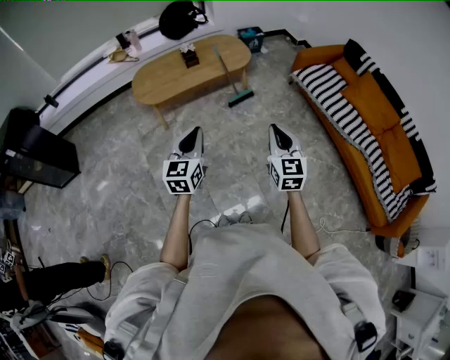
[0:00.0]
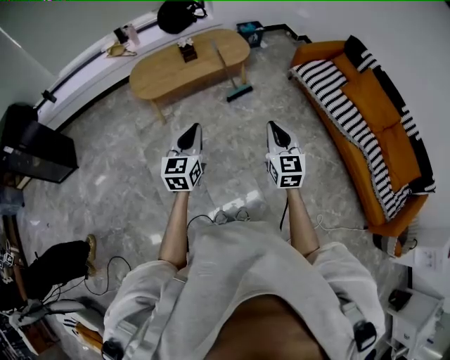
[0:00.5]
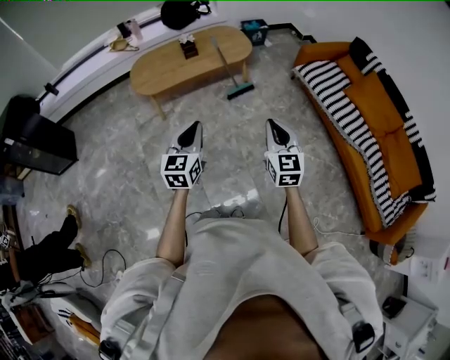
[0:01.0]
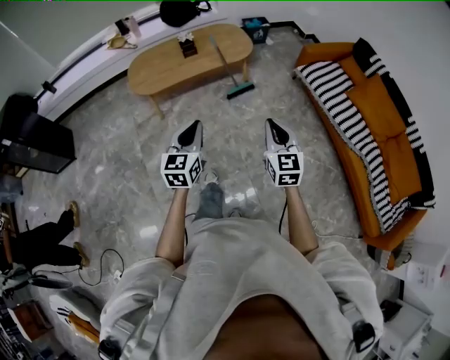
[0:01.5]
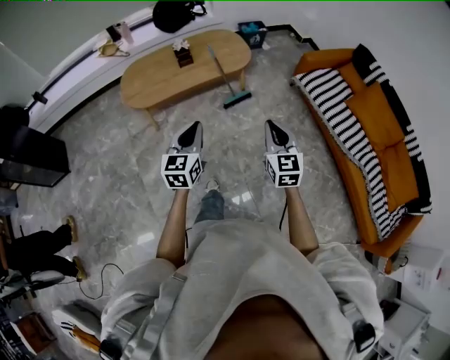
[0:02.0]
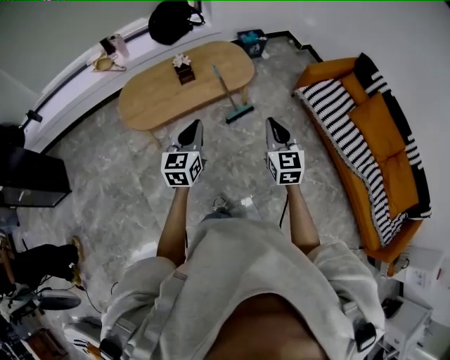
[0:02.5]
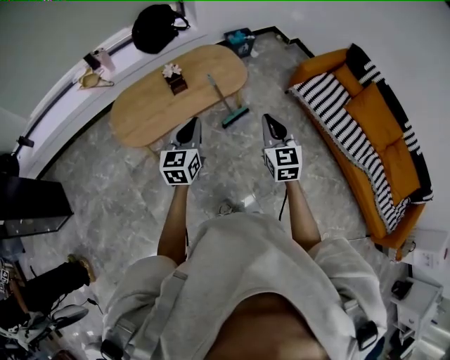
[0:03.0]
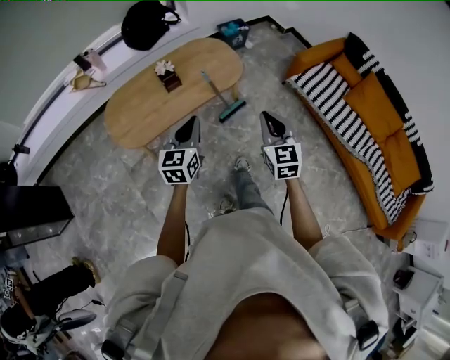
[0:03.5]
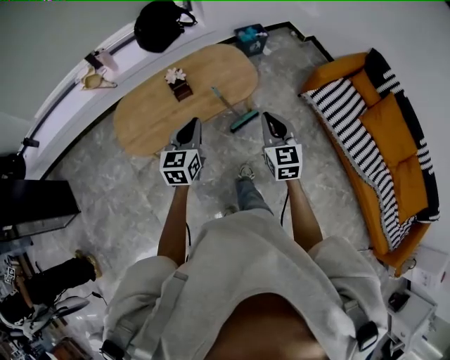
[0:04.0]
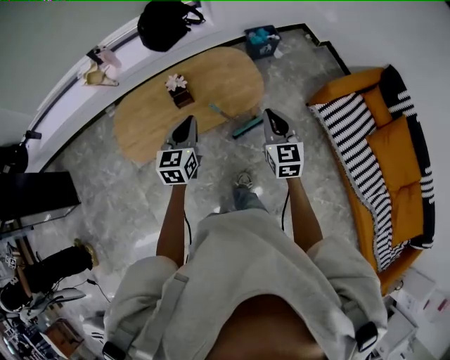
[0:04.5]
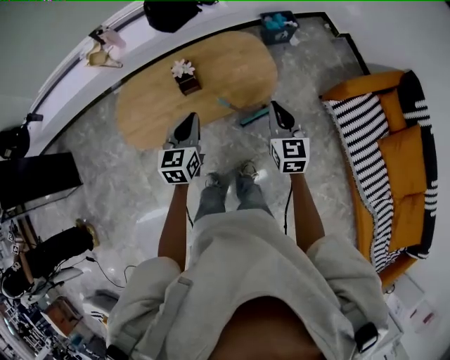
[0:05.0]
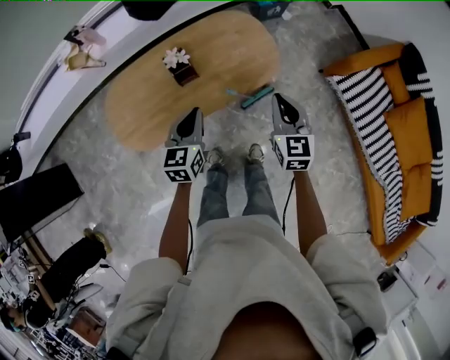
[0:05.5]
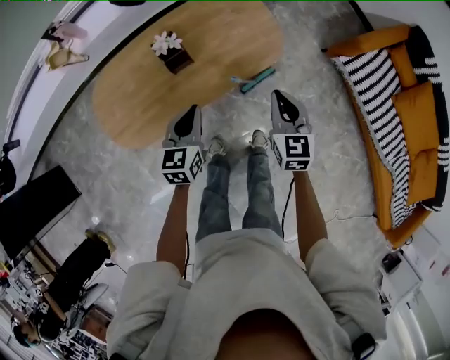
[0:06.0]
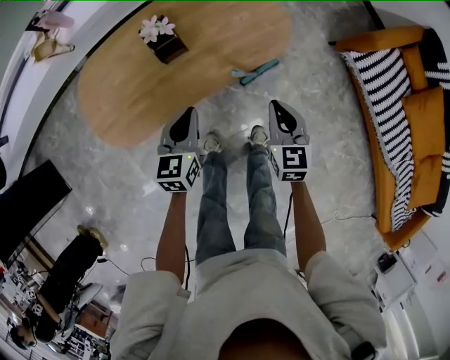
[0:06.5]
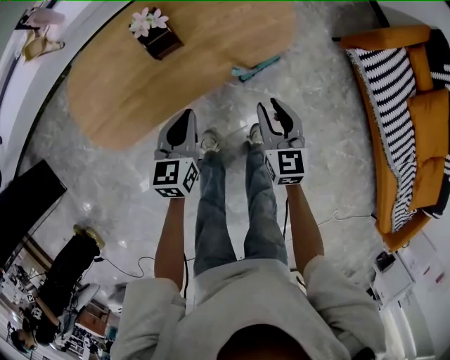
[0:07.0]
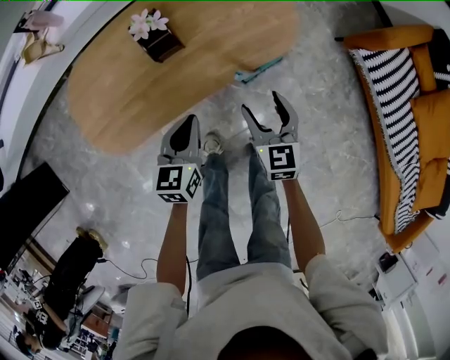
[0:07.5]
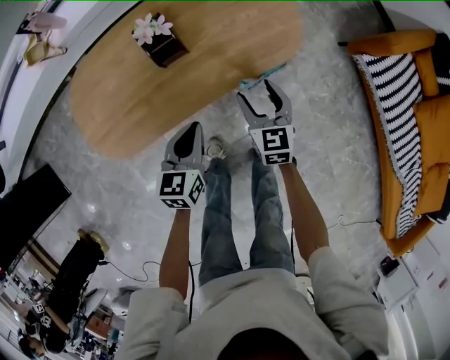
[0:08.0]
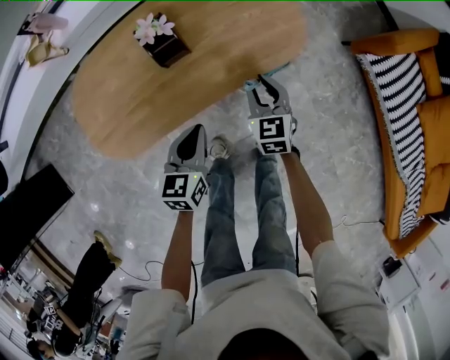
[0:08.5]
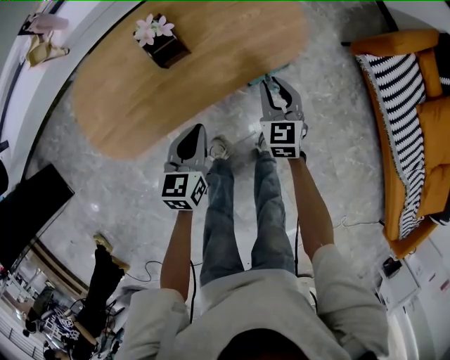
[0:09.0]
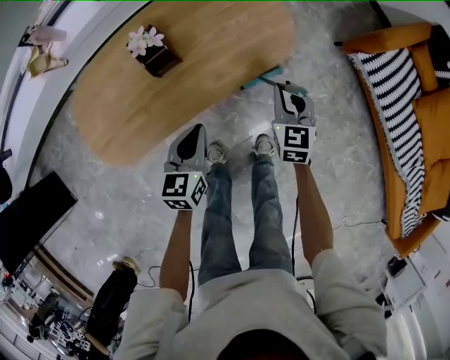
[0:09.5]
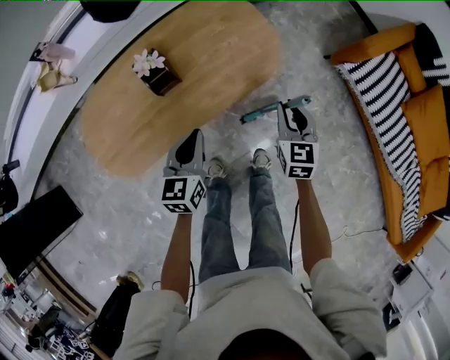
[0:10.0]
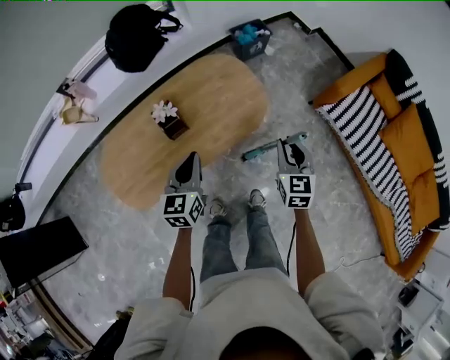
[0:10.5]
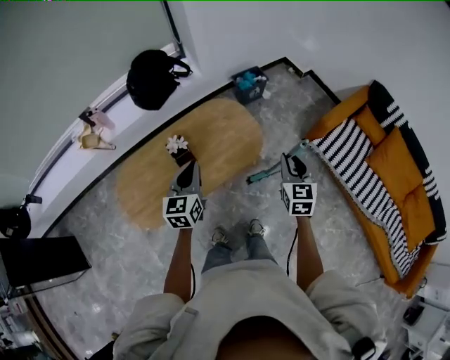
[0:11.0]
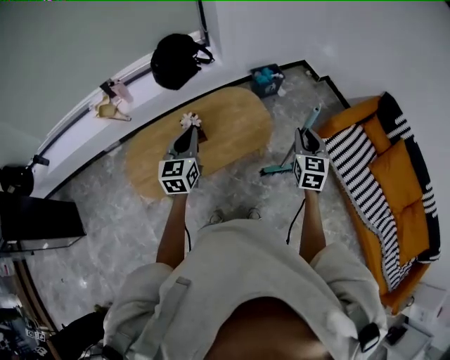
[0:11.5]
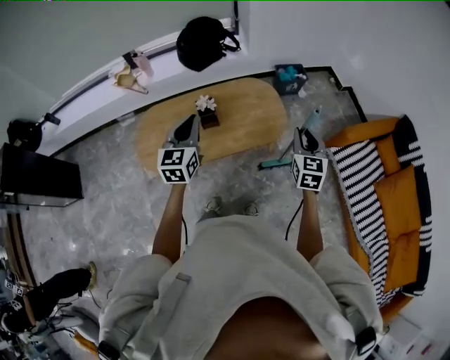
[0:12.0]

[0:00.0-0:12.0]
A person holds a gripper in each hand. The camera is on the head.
0.0 to 2.0 s: Both grippers travel together forward, about 15 cm.
2.0 to 4.0 s: The grippers both shift forward by approximately 35 cm.
4.0 to 6.0 s: The two grippers go approximately 25 cm downward and forward.
6.0 to 8.0 s: Both grippers move downward, roughly 15 cm. The right gripper opens its fingers.
8.0 to 10.0 s: The right gripper shifts roughly 15 cm to the right and upward, and closes. The left gripper is displaced upward by some 5 cm.
10.0 to 12.0 s: The grippers both shift upward by about 30 cm. The left gripper changes its angle by some 30 degrees.

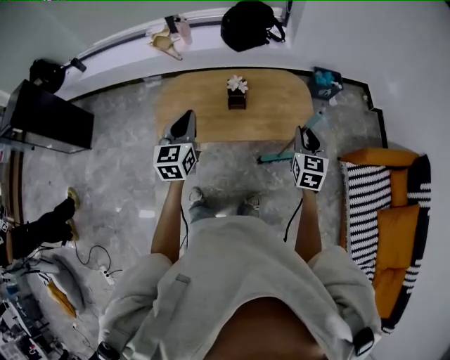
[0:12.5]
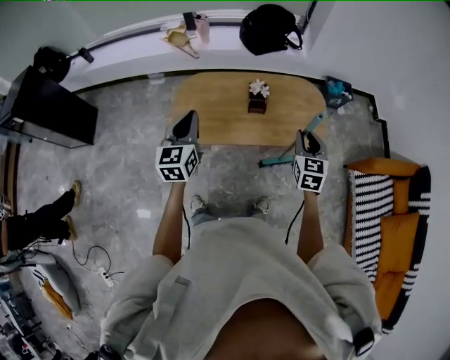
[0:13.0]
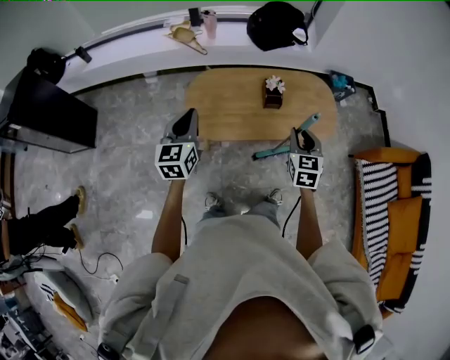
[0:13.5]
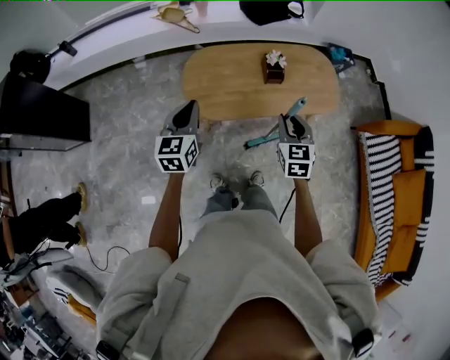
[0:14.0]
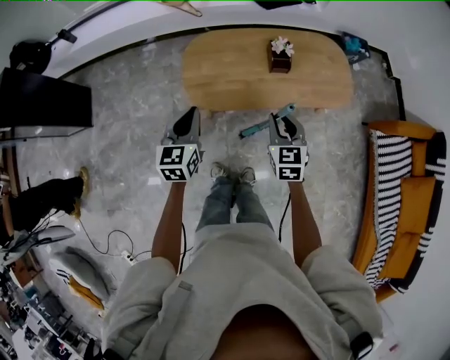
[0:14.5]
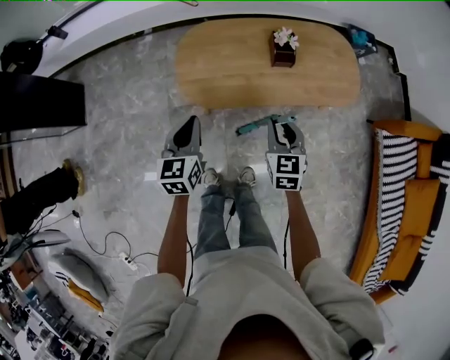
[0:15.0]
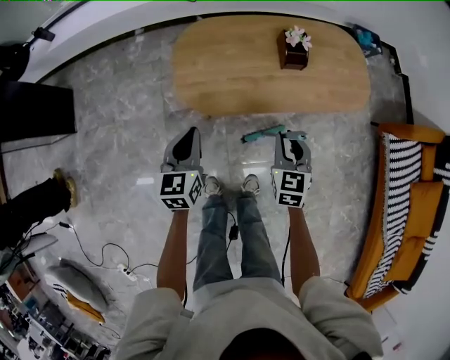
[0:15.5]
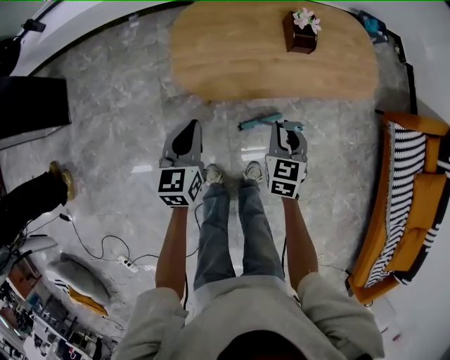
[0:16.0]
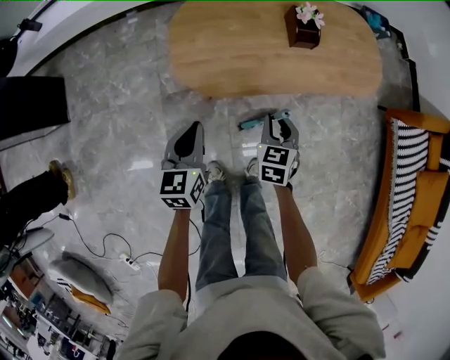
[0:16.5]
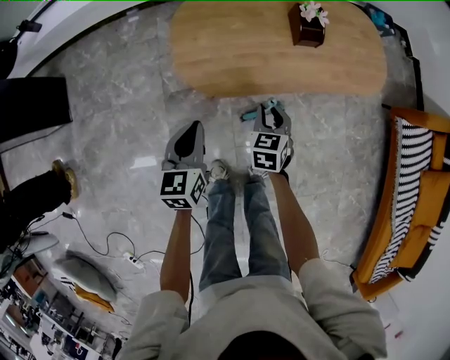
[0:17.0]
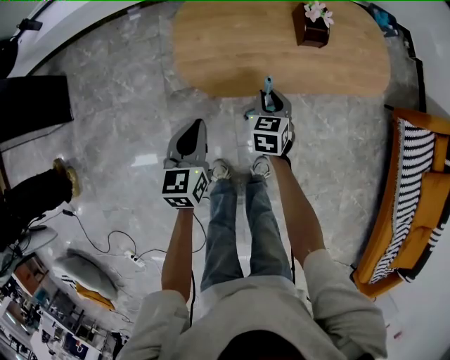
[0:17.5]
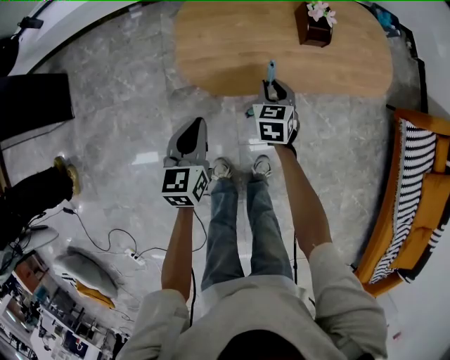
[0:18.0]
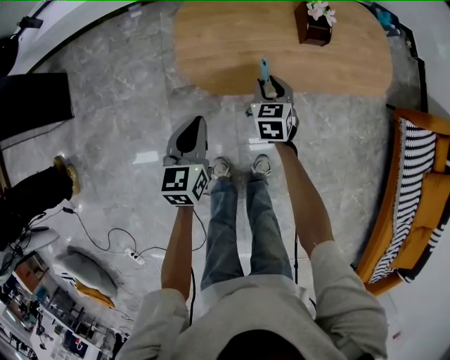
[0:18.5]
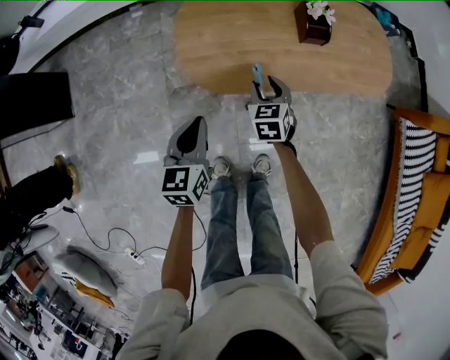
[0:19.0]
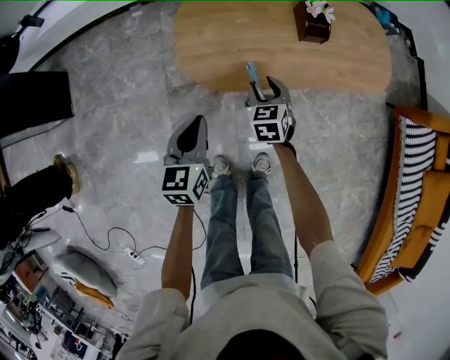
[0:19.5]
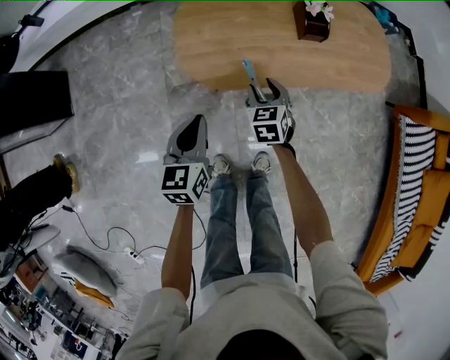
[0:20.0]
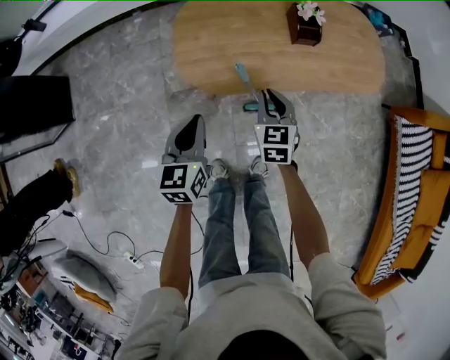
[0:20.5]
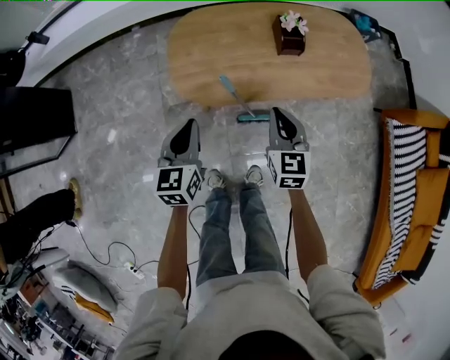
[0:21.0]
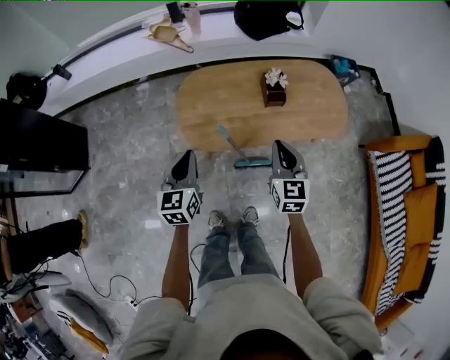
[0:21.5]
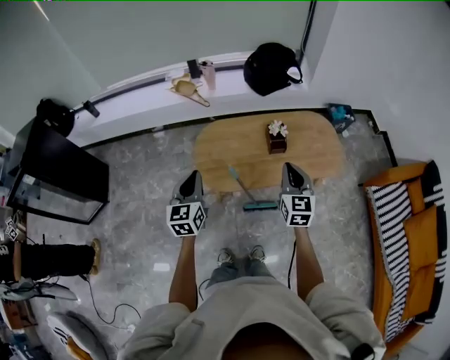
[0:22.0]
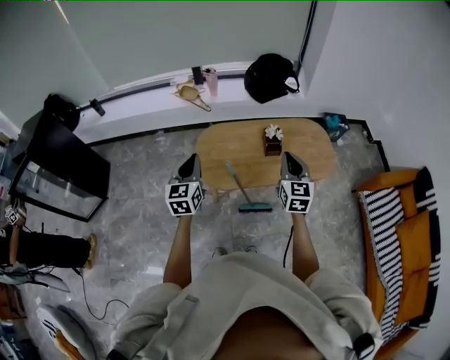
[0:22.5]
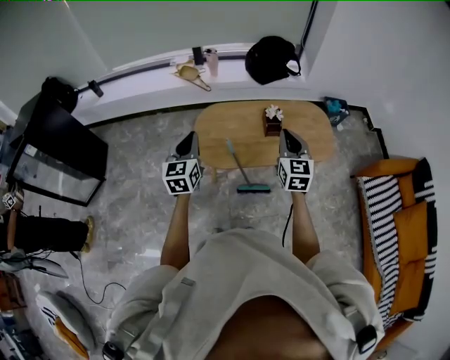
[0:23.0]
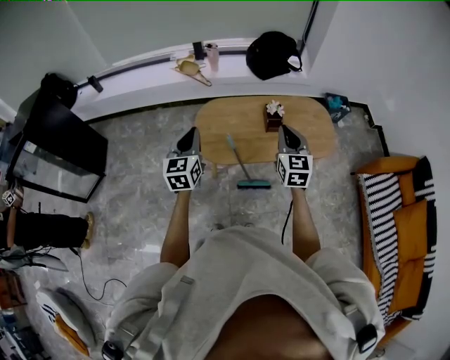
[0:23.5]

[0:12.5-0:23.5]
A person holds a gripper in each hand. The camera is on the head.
12.5 to 14.5 s: The right gripper shifts about 35 cm to the left, while the left gripper shifts about 25 cm to the left and downward.
14.5 to 16.0 s: The grippers both shift downward by roughly 20 cm.
16.0 to 18.0 s: The right gripper heads forward, downward and to the left, covering some 15 cm.
18.0 to 20.0 s: The grippers make only small movements.
20.0 to 21.5 s: The right gripper is displaced upward and to the right by roughly 30 cm, swivels approximately 30 degrees, and closes, while the left gripper travels upward by about 15 cm.
21.5 to 23.5 s: The grippers both shift upward by roughly 15 cm.

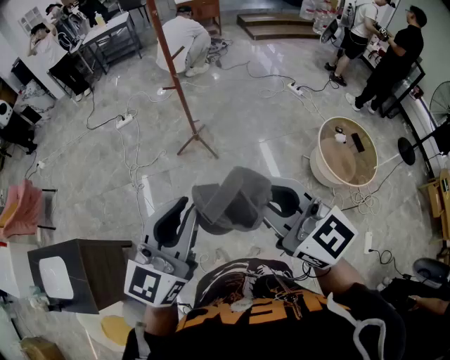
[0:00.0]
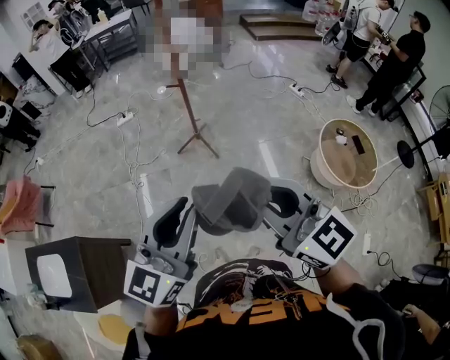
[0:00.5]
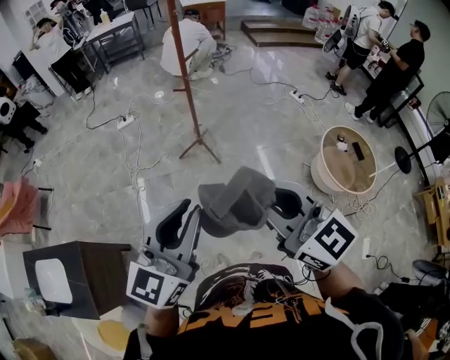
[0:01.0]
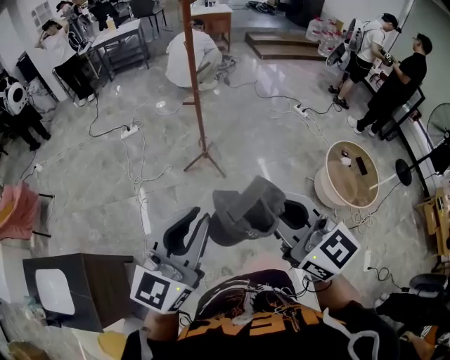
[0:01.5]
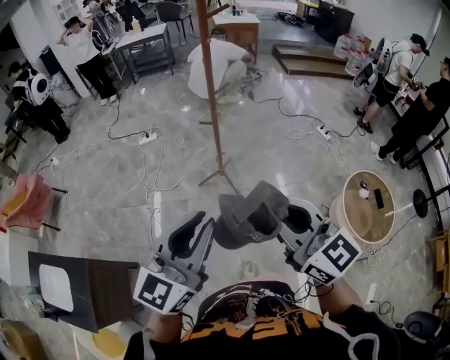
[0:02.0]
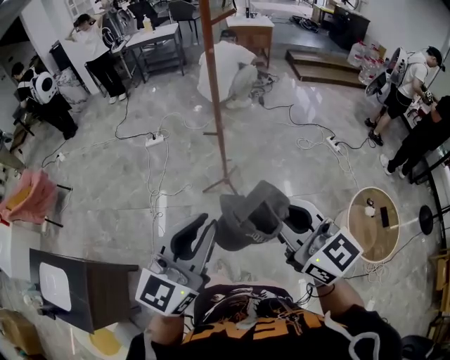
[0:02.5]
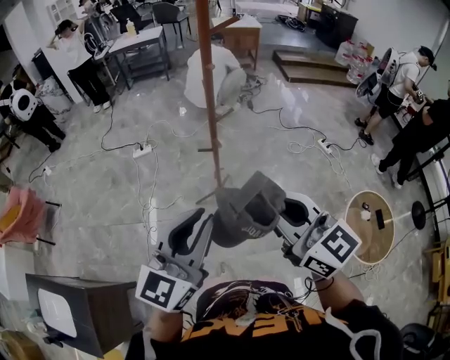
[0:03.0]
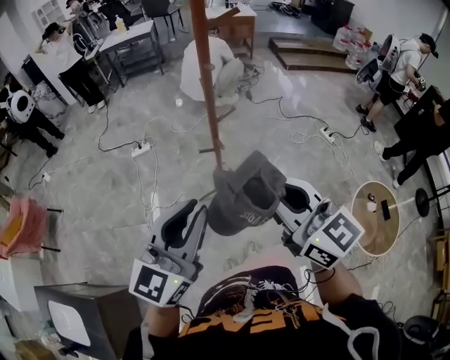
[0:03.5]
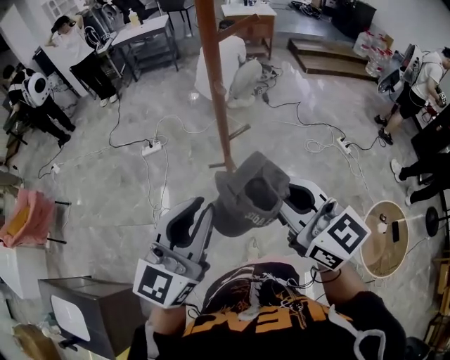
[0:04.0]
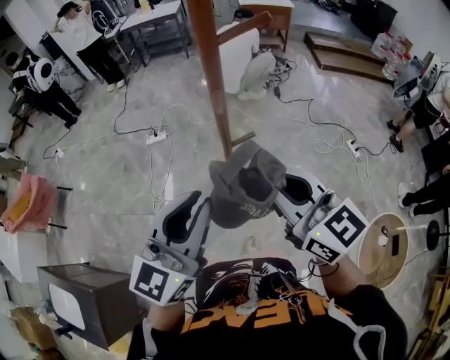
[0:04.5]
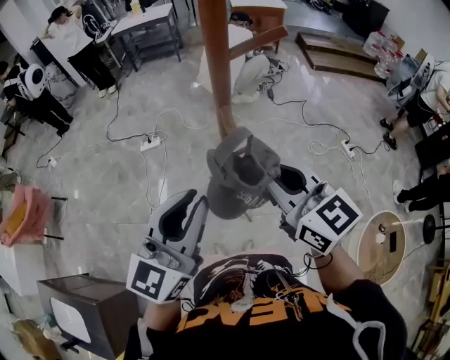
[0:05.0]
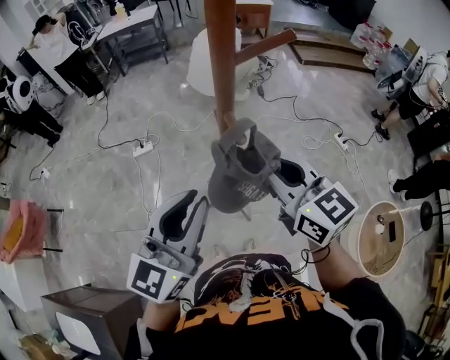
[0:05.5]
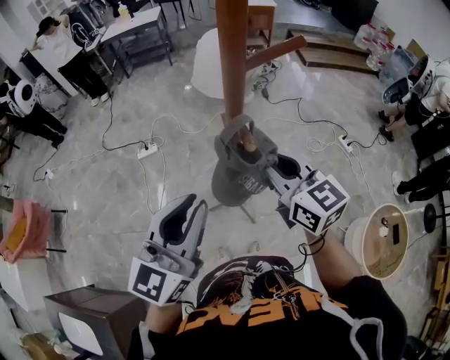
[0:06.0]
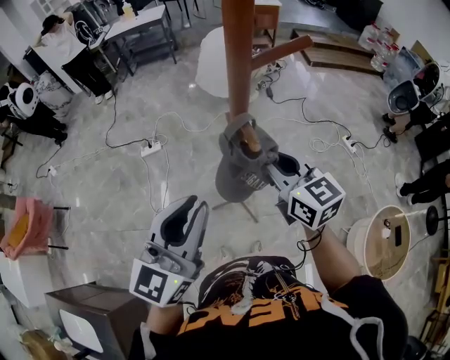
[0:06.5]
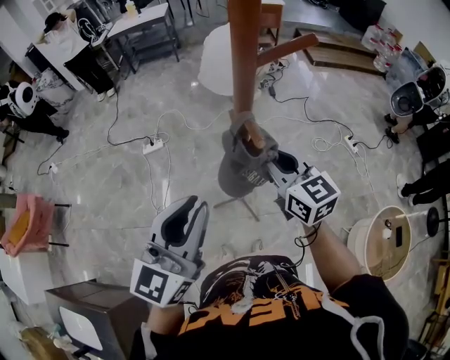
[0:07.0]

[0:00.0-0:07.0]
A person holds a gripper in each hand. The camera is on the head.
0.0 to 2.0 s: Both grippers move forward, some 15 cm.
2.0 to 3.5 s: The two grippers go approximately 30 cm forward.
3.5 to 5.0 s: The two grippers go some 25 cm forward.
5.0 to 7.0 s: The right gripper is displaced forward and downward by about 10 cm.
